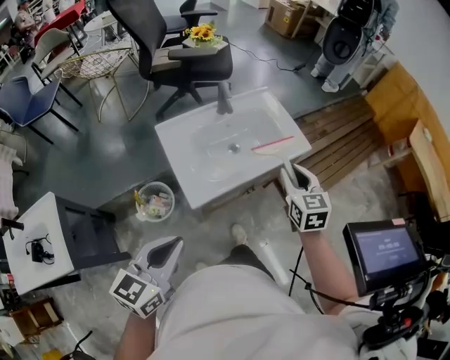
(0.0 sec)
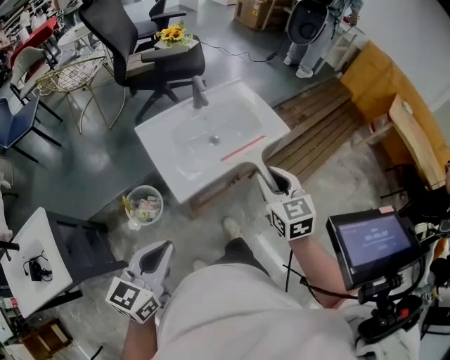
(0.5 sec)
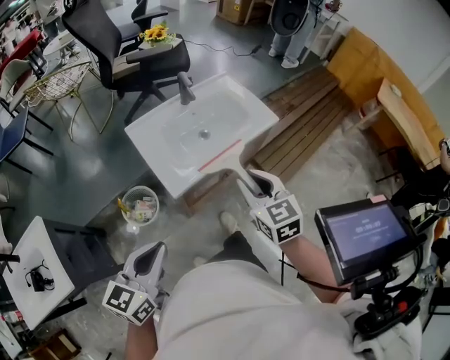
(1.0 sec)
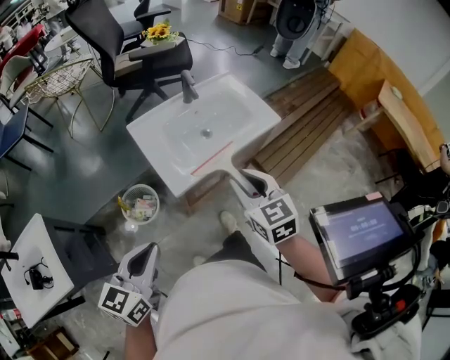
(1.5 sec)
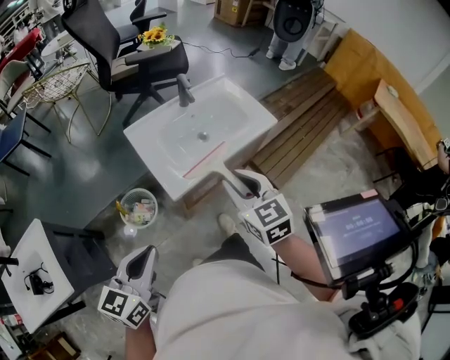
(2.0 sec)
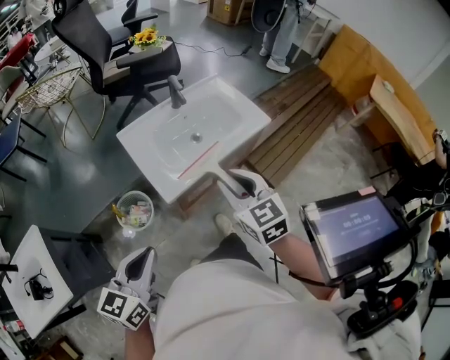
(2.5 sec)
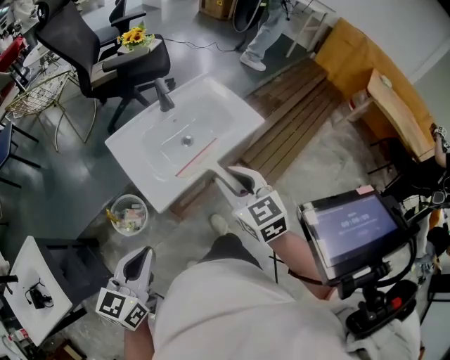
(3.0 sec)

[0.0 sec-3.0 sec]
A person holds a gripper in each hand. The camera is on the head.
0.0 sec to 1.5 sec: The right gripper shifts approximately 15 cm backward and to the left, while the left gripper travels backward by roughly 5 cm.
1.5 sec to 3.0 sec: The right gripper changes place by roughly 5 cm. Meanwhile the left gripper ends up approximately 5 cm from where it was.

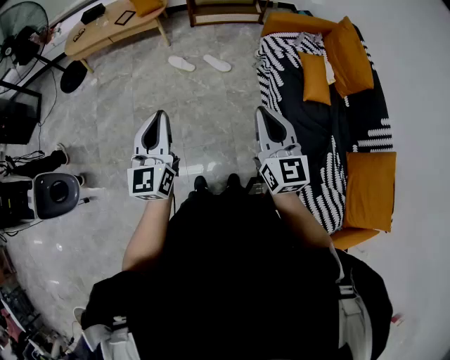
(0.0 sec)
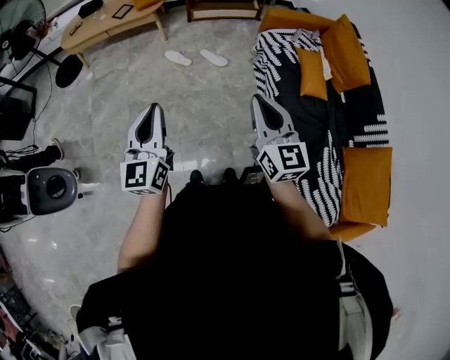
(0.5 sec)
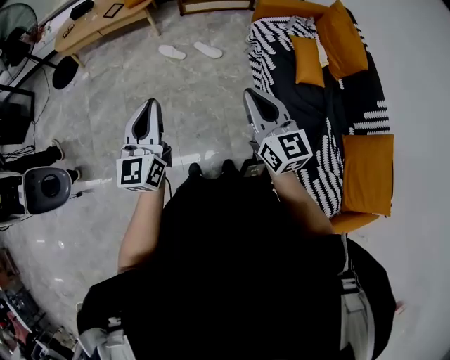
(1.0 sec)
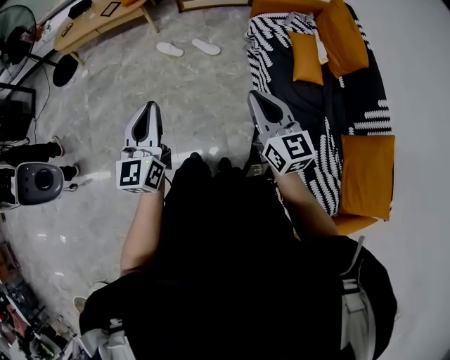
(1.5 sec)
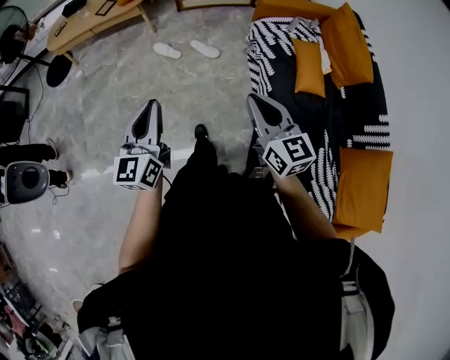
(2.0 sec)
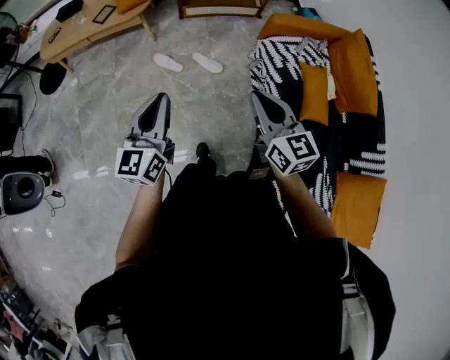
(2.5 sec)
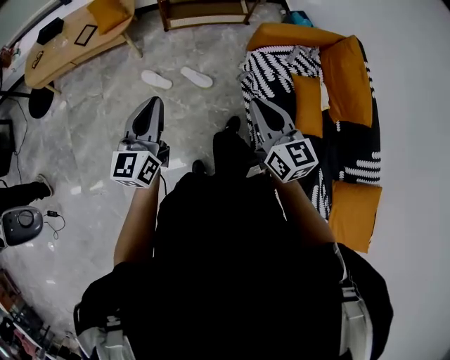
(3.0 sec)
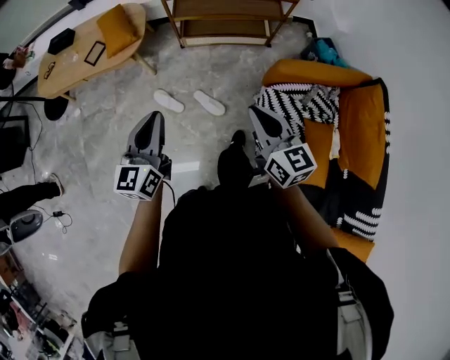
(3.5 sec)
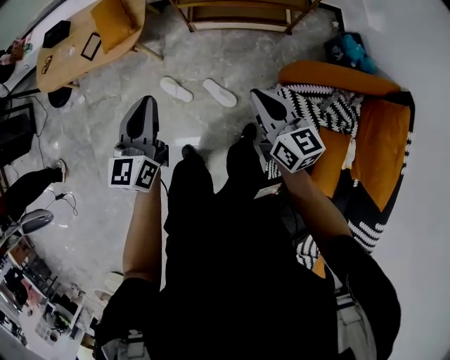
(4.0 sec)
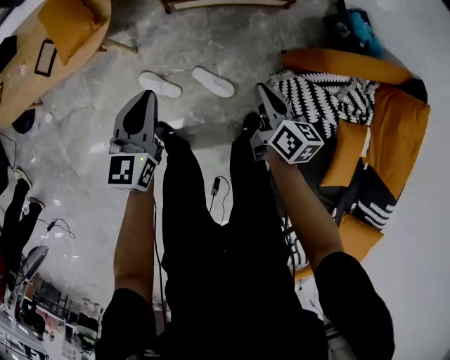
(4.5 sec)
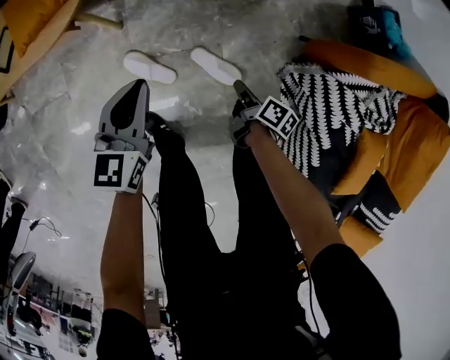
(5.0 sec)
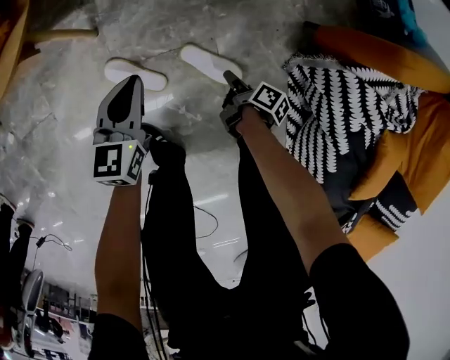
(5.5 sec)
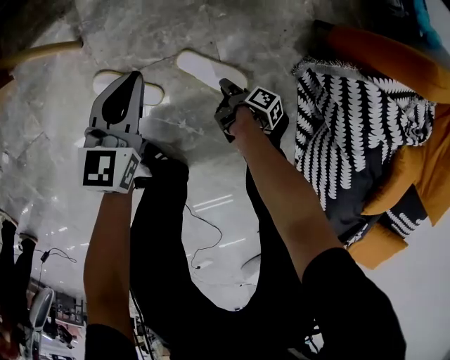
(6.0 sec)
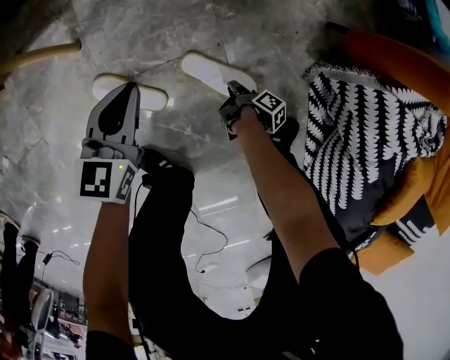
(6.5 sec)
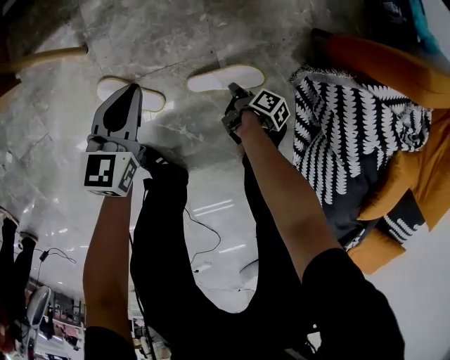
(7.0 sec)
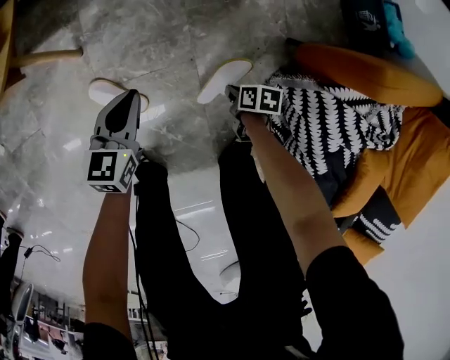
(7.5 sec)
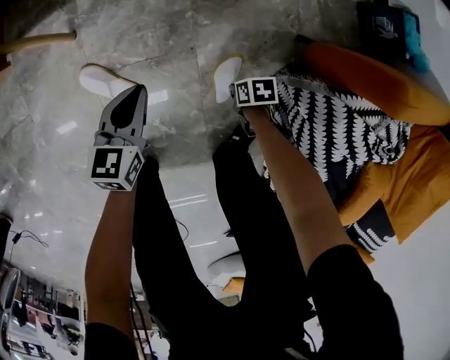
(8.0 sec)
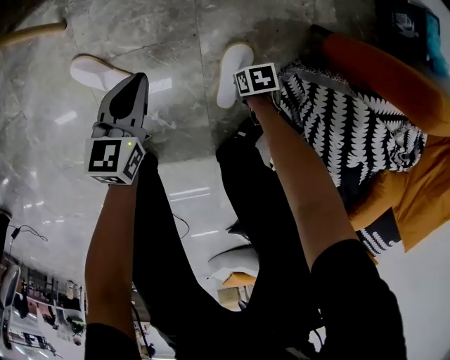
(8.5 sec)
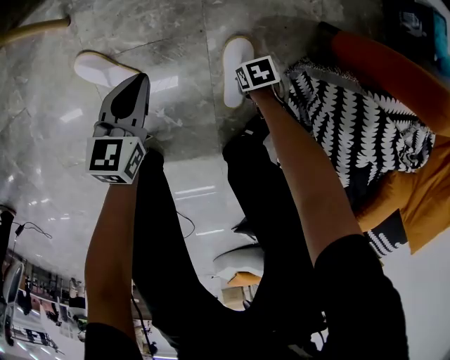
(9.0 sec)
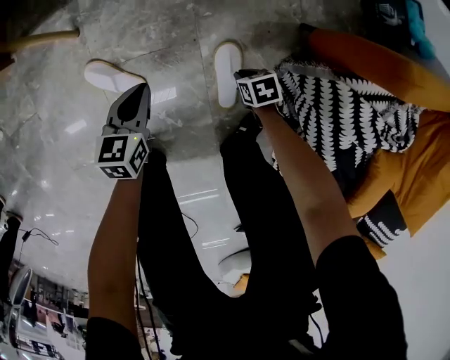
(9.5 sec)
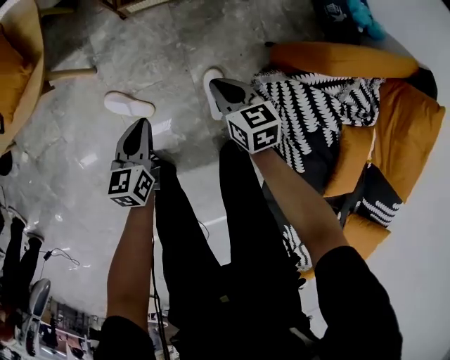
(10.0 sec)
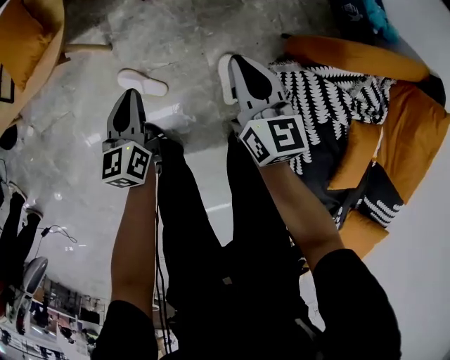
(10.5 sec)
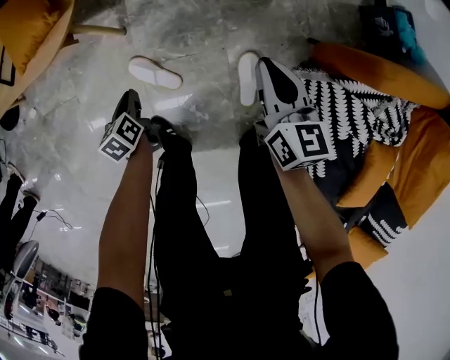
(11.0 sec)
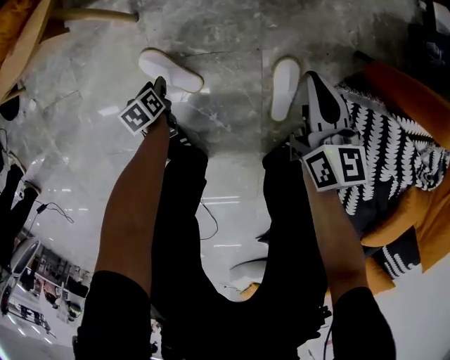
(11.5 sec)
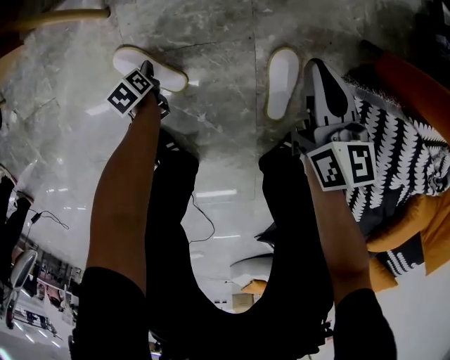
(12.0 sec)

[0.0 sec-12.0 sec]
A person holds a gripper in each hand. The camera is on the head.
0.0 sec to 2.0 sec: The right gripper travels forward, to the right and downward by some 10 cm. The left gripper moves to the right and forward, about 10 cm.
2.0 sec to 4.0 sec: The two grippers travel together, forward, some 60 cm. The right gripper swivels about 20 degrees.
4.0 sec to 6.0 sec: The grippers both shift downward by some 70 cm. The left gripper swivels about 30 degrees, while the right gripper rolls clockwise, seen from behind, by about 90 degrees, and opens up.
6.0 sec to 8.0 sec: The right gripper swings up and down, about 15 cm each way, with 2 reversals, rotates around the line of its fingers by approximately 70 degrees, counterclockwise from behind, and closes its fingers. Meanwhile the left gripper swings up and down, some 5 cm each way, with 2 reversals.
8.0 sec to 10.0 sec: The left gripper goes about 15 cm upward; the right gripper goes approximately 35 cm upward, and changes its angle by roughly 50 degrees.
10.0 sec to 12.0 sec: The left gripper travels downward and to the left by approximately 50 cm, angles its fingers downward, by some 30 degrees, and opens its fingers; the right gripper heads downward, covering approximately 15 cm.

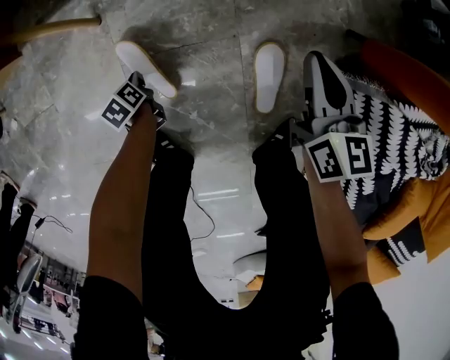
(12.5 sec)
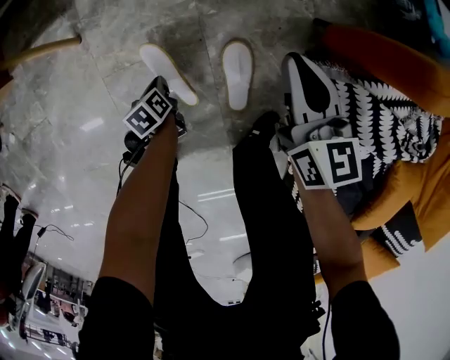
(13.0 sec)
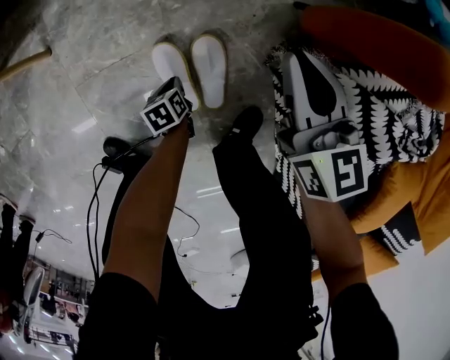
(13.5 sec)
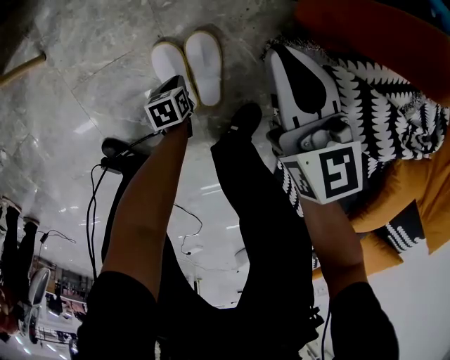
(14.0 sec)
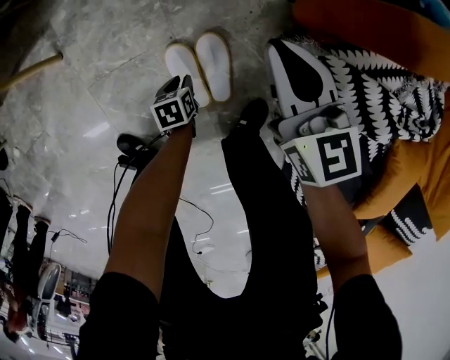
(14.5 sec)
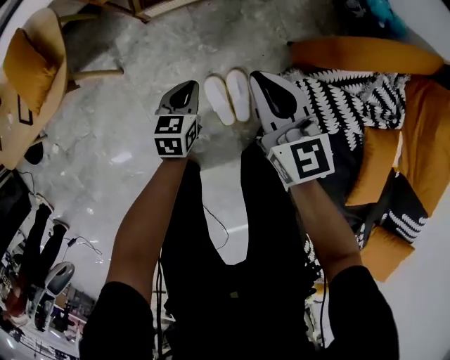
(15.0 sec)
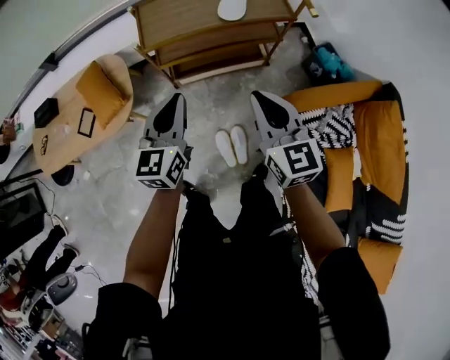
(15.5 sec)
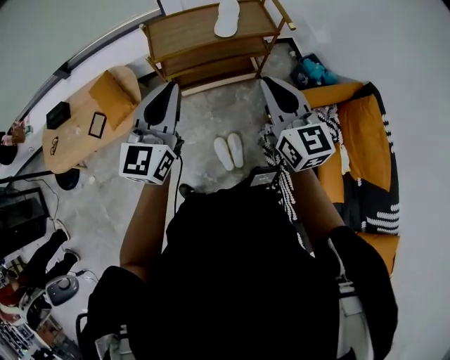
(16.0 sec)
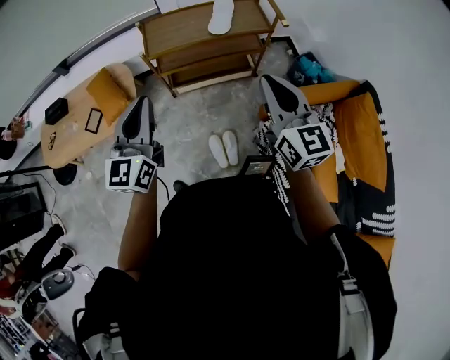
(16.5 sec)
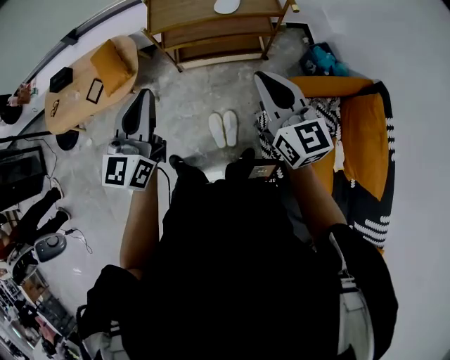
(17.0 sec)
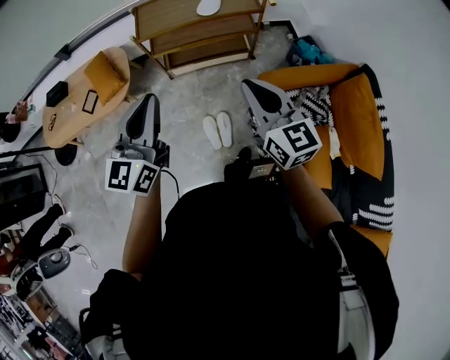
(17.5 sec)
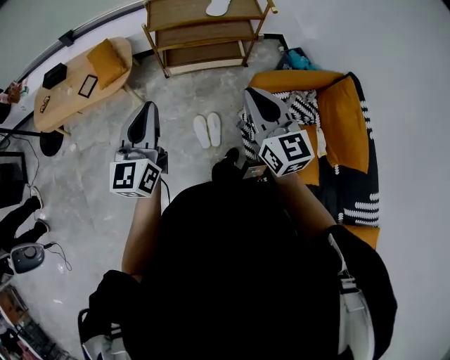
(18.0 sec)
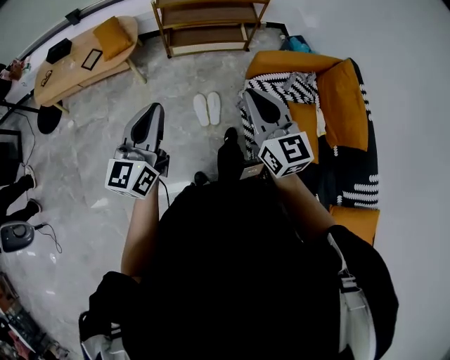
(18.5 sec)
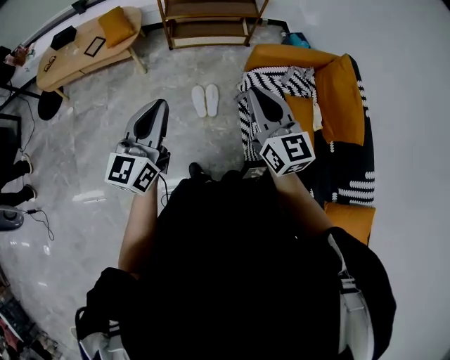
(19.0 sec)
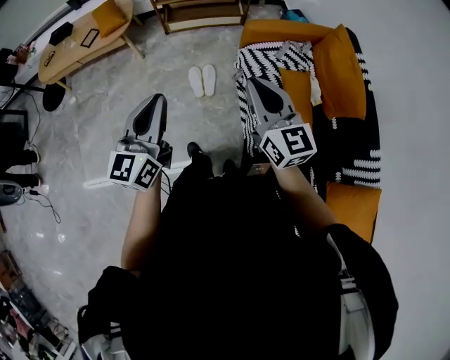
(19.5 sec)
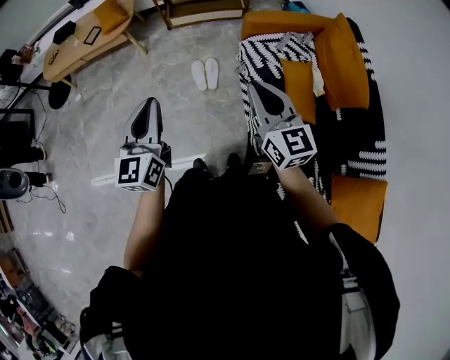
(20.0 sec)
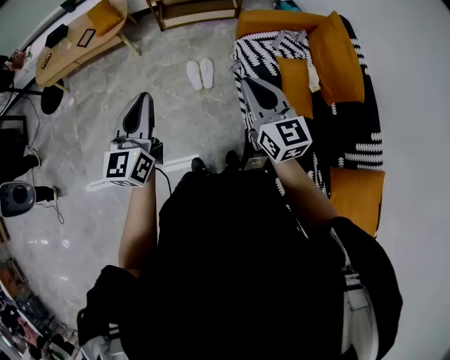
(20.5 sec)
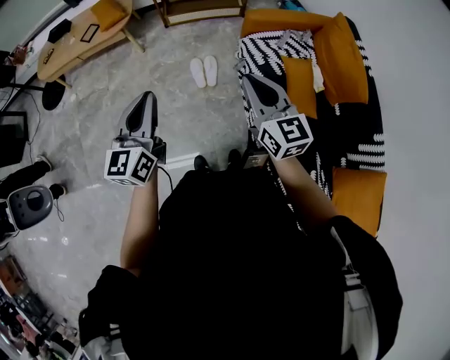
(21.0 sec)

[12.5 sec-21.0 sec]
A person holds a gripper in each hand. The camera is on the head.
12.5 sec to 14.5 sec: The left gripper shifts by some 30 cm, changes its angle by some 40 degrees, and opens, while the right gripper moves roughly 10 cm.
14.5 sec to 16.5 sec: The grippers both shift upward by some 80 cm. The right gripper changes its angle by some 20 degrees, while the left gripper tilts its fingers approximately 70 degrees upward, and closes its fingers.
16.5 sec to 19.0 sec: The two grippers go about 40 cm backward.
19.0 sec to 21.0 sec: Both grippers move backward, some 10 cm.

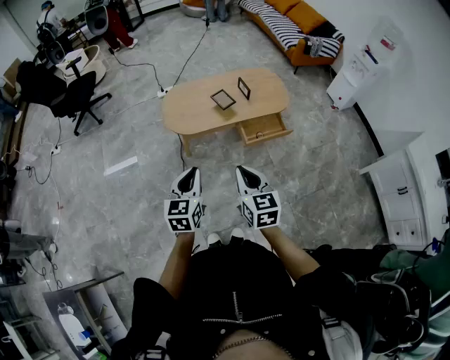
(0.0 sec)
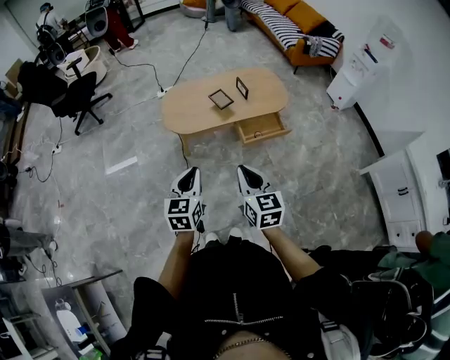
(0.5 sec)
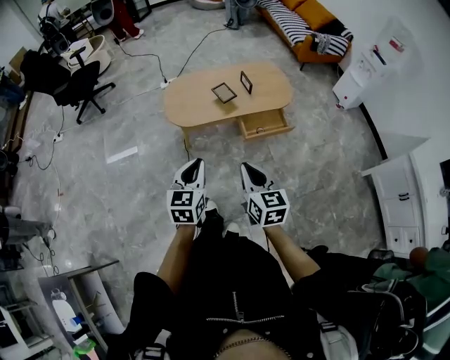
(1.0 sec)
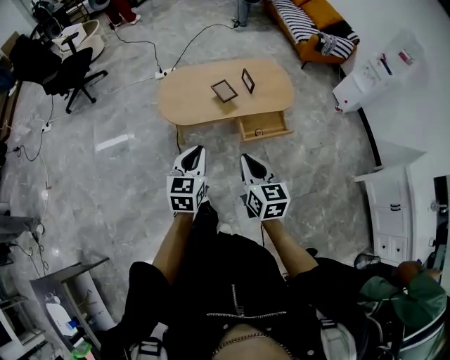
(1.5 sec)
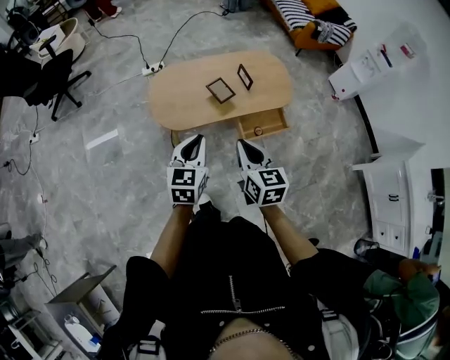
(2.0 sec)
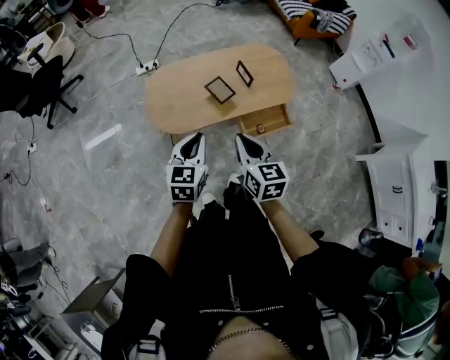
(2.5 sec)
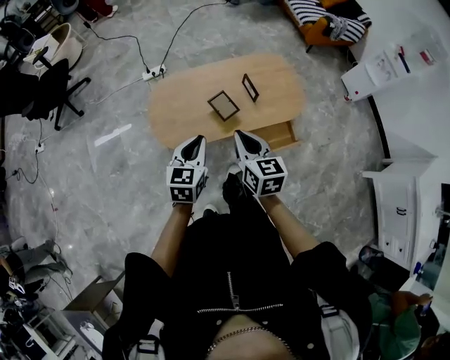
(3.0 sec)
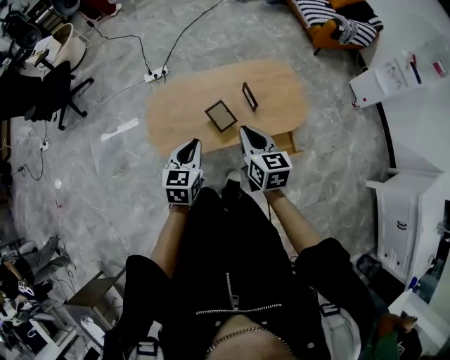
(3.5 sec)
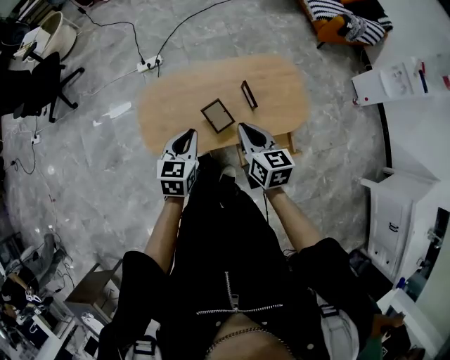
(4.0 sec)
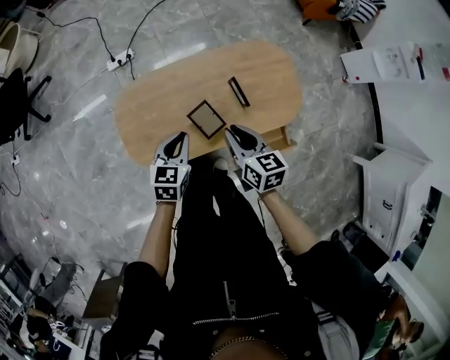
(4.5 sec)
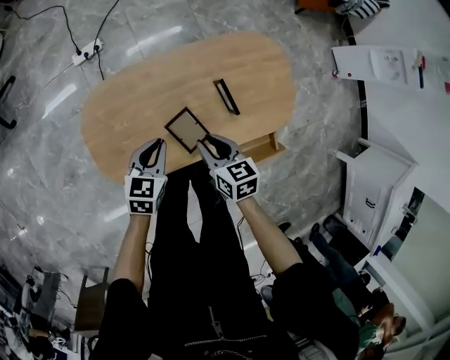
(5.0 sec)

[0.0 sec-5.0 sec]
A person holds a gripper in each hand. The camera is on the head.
0.0 sec to 2.5 sec: Both grippers move forward, some 30 cm.
2.5 sec to 5.0 sec: Both grippers travel together forward and downward, some 50 cm. The right gripper changes its angle by some 30 degrees, and opens, while the left gripper swivels some 20 degrees.
